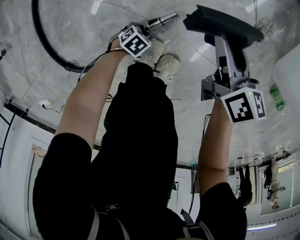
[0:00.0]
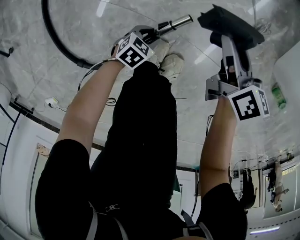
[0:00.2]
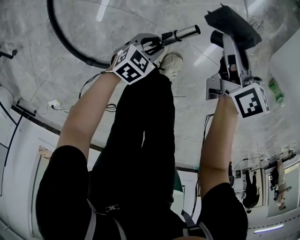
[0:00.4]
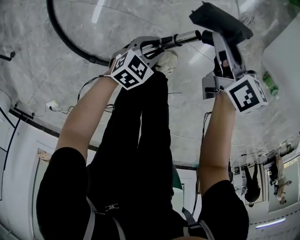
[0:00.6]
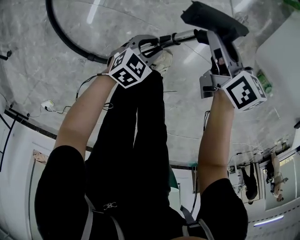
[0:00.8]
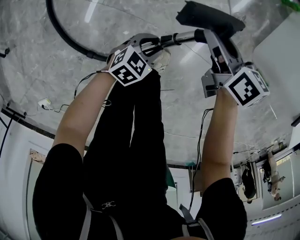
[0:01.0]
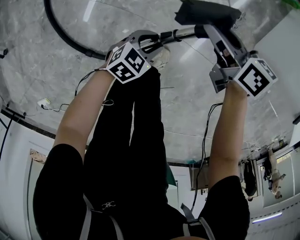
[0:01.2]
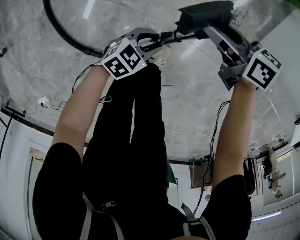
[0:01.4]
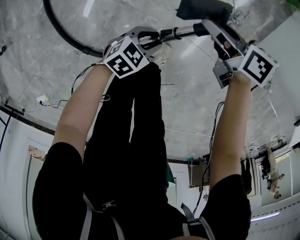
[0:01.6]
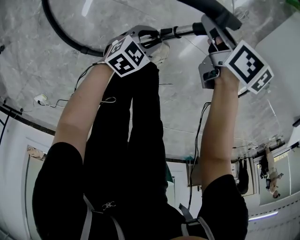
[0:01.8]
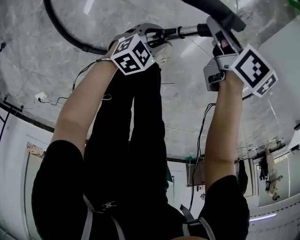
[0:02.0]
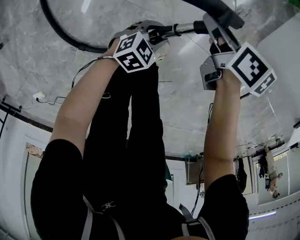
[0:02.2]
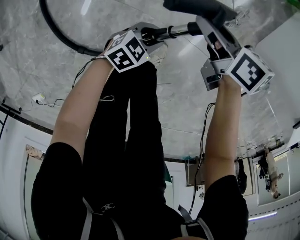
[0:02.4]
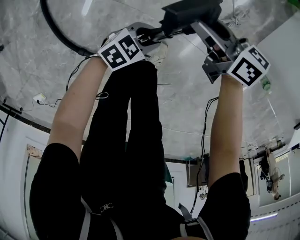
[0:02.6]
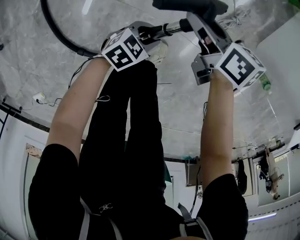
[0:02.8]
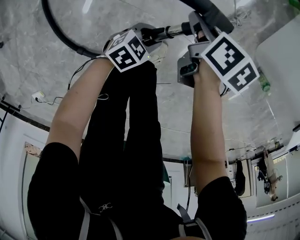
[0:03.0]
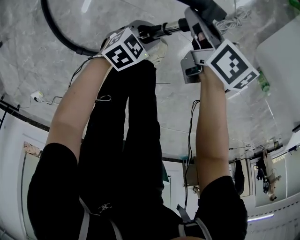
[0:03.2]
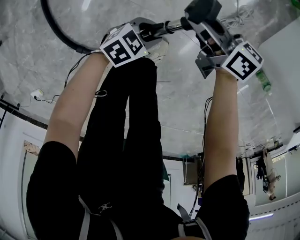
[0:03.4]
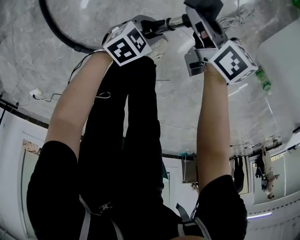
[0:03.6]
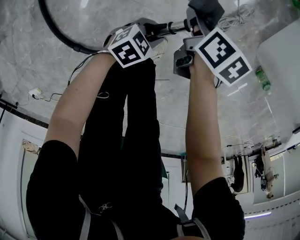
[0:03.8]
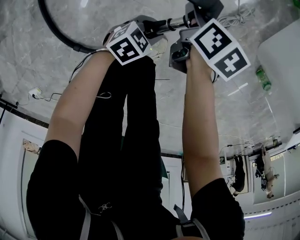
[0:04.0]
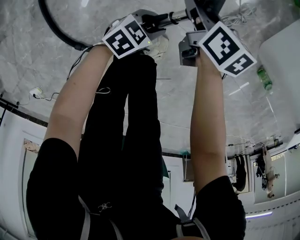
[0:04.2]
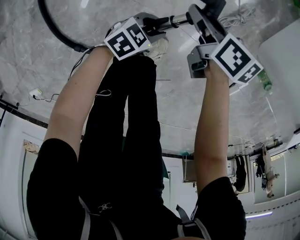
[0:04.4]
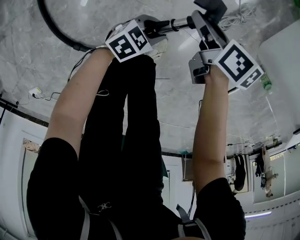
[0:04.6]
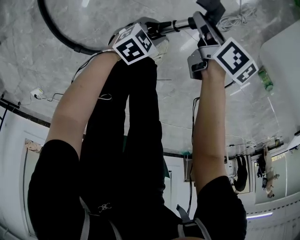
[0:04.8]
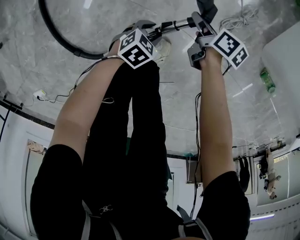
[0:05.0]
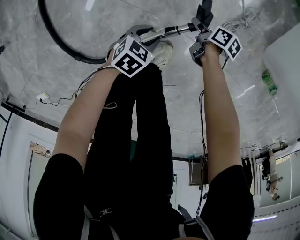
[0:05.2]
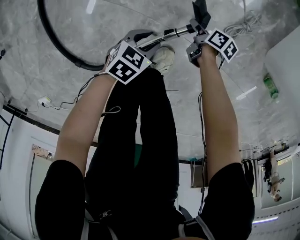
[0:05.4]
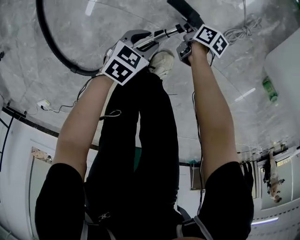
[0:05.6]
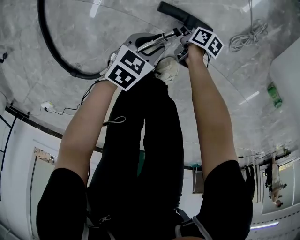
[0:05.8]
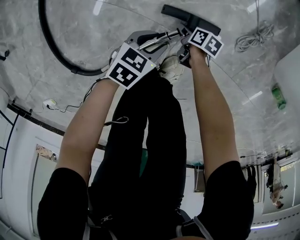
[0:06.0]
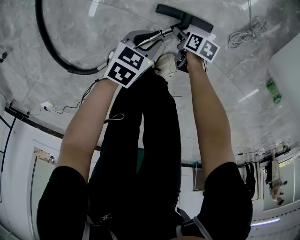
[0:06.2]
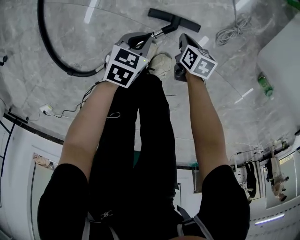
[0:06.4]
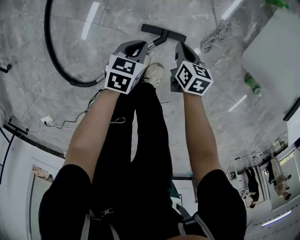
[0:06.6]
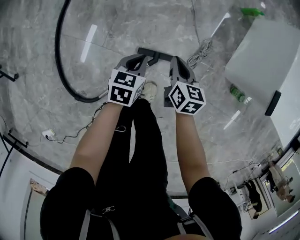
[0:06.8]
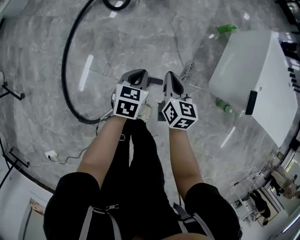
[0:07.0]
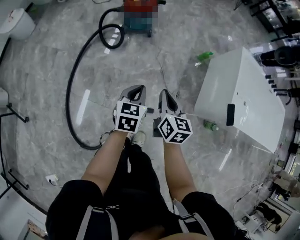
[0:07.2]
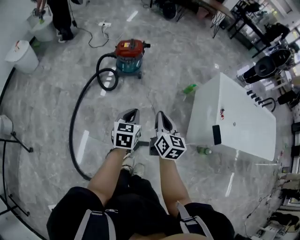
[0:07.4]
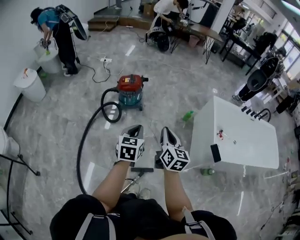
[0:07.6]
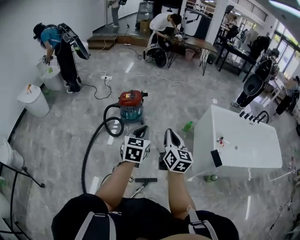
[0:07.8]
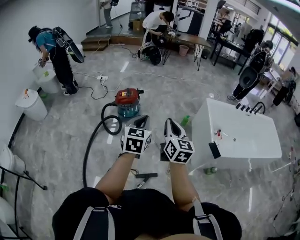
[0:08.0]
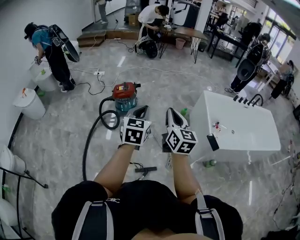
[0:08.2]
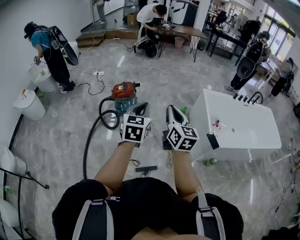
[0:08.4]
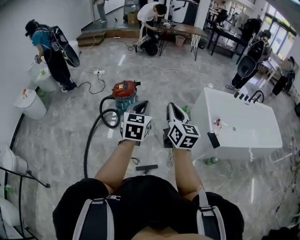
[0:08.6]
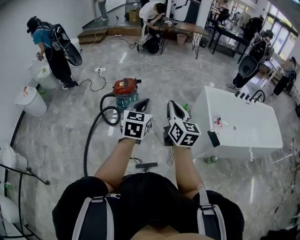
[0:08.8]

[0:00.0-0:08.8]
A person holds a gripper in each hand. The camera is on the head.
0:00.0 to 0:01.4: The left gripper heads upward, covering about 30 cm, and rotates about 30 degrees. The right gripper heads upward, covering approximately 10 cm, and turns by approximately 30 degrees.
0:01.4 to 0:03.0: The right gripper moves downward, roughly 5 cm, and changes its angle by some 40 degrees.
0:04.4 to 0:05.8: The right gripper moves downward, approximately 30 cm, and swivels about 30 degrees. Meanwhile the left gripper changes place by approximately 10 cm.
0:05.8 to 0:07.4: The grippers both shift upward by some 80 cm. The right gripper points its fingers about 40 degrees further upward, and closes up; the left gripper swivels roughly 40 degrees, and closes up.
0:07.4 to 0:08.8: Both grippers move upward and to the right, about 25 cm. The left gripper turns by about 20 degrees.

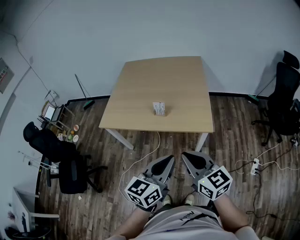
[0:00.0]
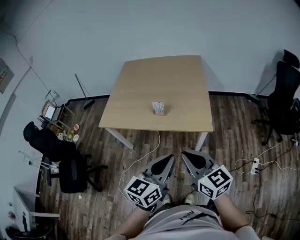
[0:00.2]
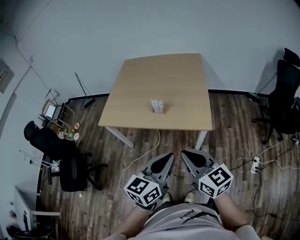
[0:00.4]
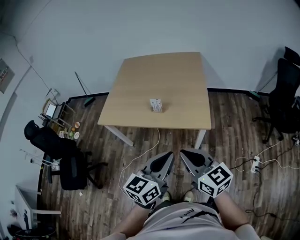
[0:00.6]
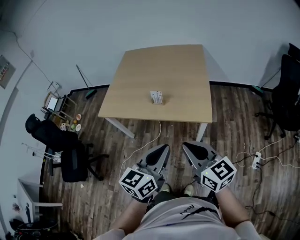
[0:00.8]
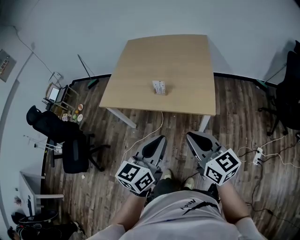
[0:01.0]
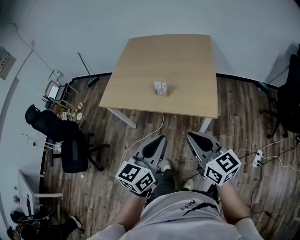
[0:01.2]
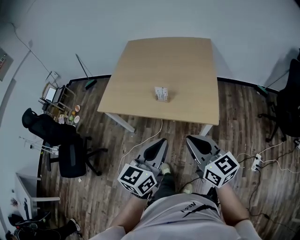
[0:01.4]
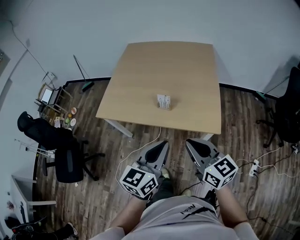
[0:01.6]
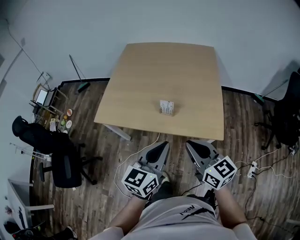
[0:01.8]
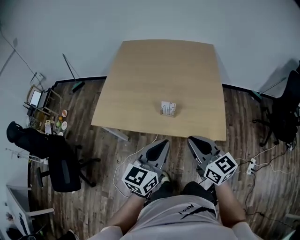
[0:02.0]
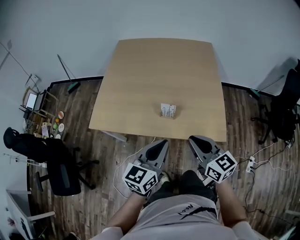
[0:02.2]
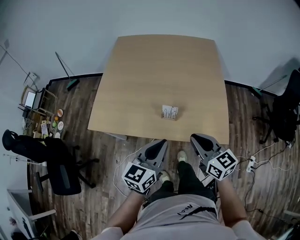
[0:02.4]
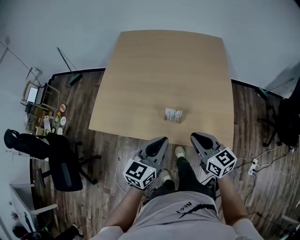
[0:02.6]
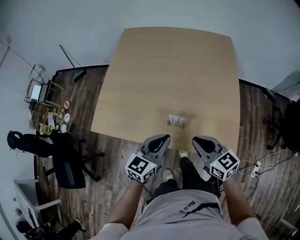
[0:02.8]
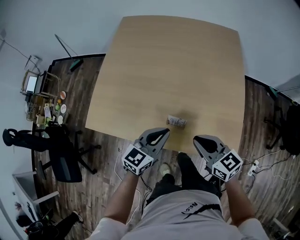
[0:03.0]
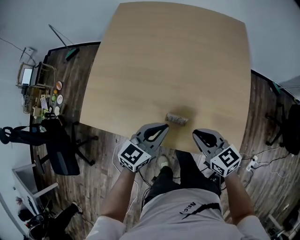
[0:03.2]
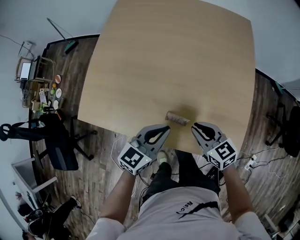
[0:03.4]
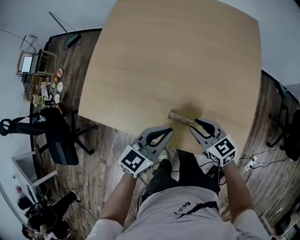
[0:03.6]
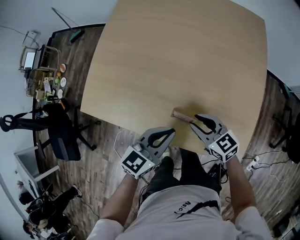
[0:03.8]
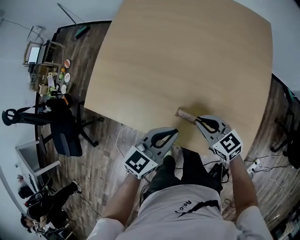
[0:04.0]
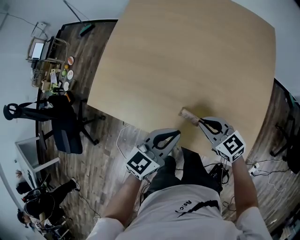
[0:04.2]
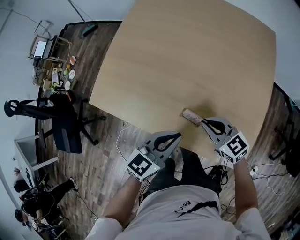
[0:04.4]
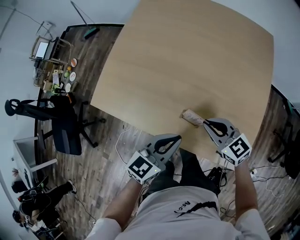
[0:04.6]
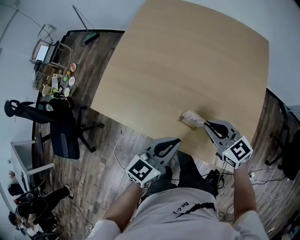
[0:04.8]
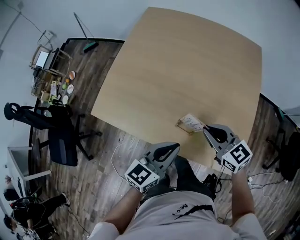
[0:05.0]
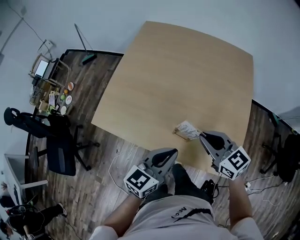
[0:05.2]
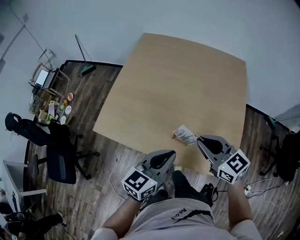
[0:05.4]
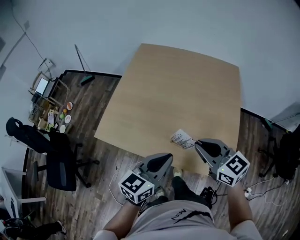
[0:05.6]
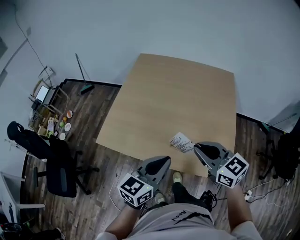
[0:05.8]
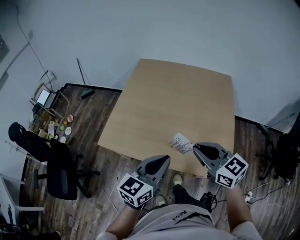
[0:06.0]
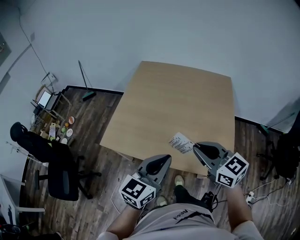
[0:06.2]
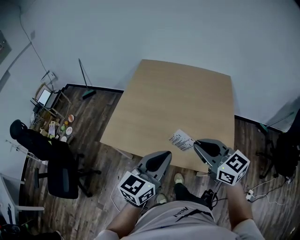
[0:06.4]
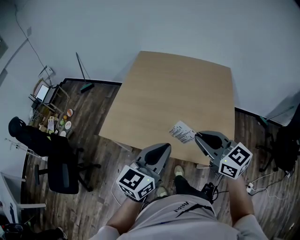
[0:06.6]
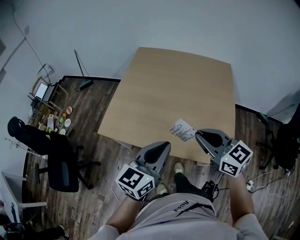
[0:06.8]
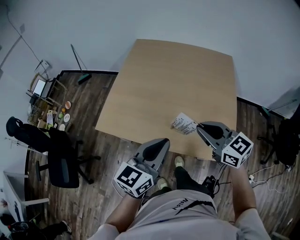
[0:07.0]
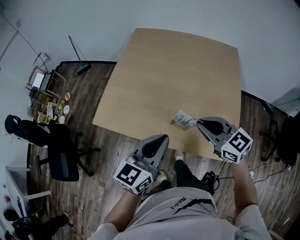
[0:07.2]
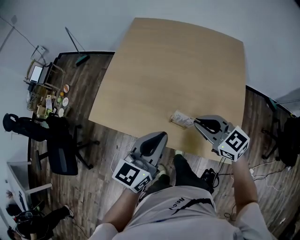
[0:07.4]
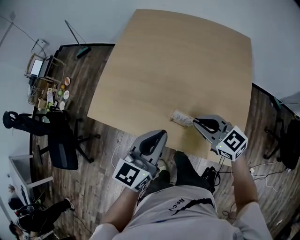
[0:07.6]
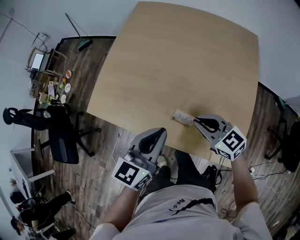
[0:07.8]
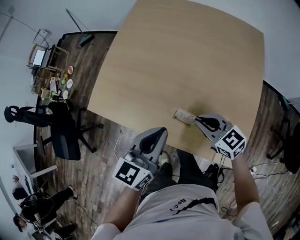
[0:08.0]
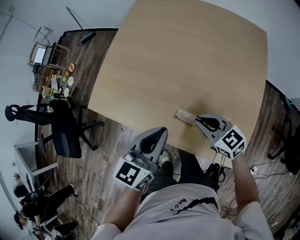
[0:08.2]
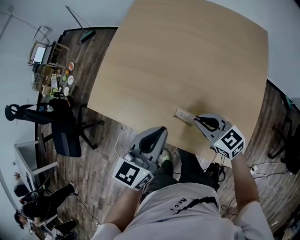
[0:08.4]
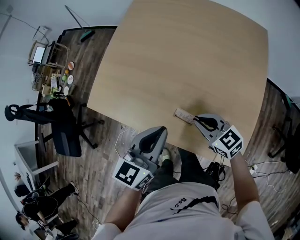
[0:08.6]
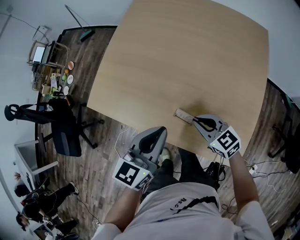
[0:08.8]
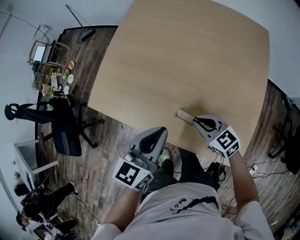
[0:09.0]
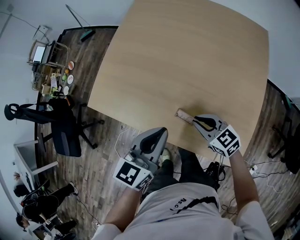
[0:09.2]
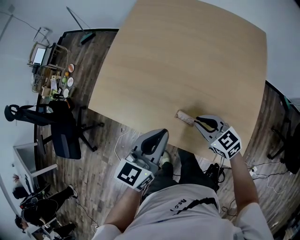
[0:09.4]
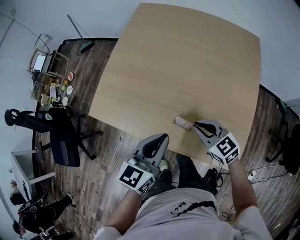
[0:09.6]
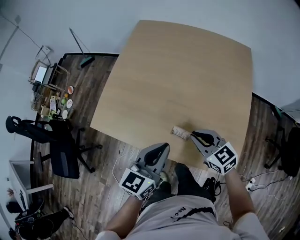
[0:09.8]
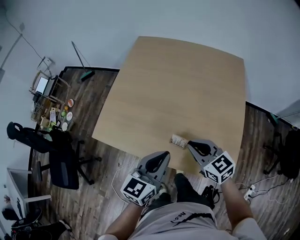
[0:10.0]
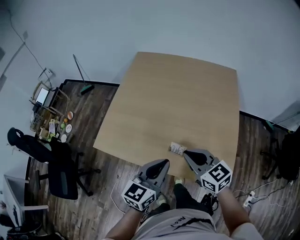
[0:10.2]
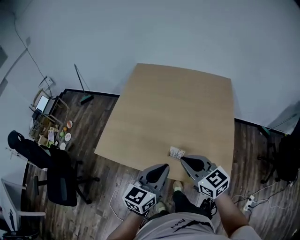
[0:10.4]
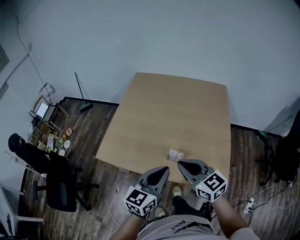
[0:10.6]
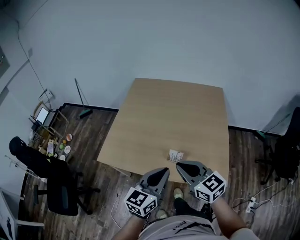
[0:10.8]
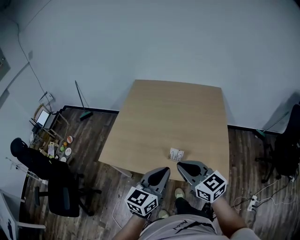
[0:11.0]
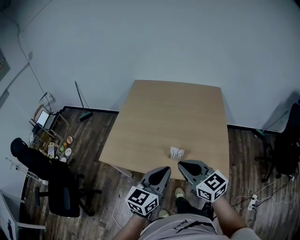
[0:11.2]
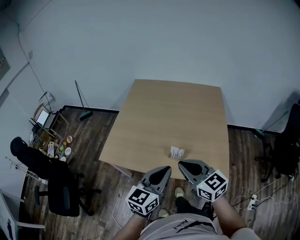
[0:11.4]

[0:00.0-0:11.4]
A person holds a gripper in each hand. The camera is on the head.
0:00.0 to 0:01.4: The grippers both shift forward by roughly 5 cm.
0:01.4 to 0:02.8: Both grippers travel together forward and downward, about 35 cm.
0:02.8 to 0:04.2: The left gripper heads downward and forward, covering some 10 cm, while the right gripper is displaced downward and forward by roughly 15 cm, turns by some 20 degrees, and opens and closes again.
0:04.2 to 0:05.6: The right gripper shifts approximately 25 cm upward, while the left gripper travels upward and backward by approximately 15 cm.
0:05.6 to 0:07.2: The right gripper moves about 5 cm upward and comes back. The left gripper travels upward and back again, roughly 10 cm each way.
0:07.2 to 0:08.6: The left gripper is displaced downward and forward by roughly 10 cm. The right gripper shifts some 20 cm downward.
0:08.6 to 0:10.0: The right gripper shifts roughly 10 cm upward, while the left gripper changes place by roughly 5 cm.
0:10.0 to 0:11.4: The right gripper goes roughly 20 cm upward, backward and to the left. The left gripper travels backward and upward by some 15 cm.

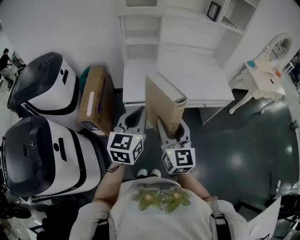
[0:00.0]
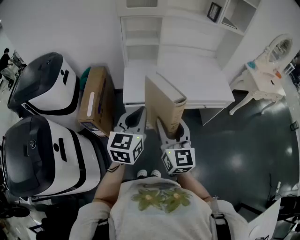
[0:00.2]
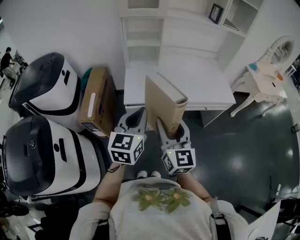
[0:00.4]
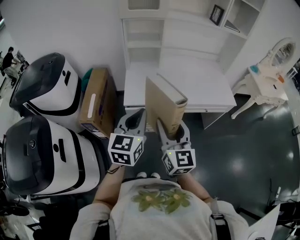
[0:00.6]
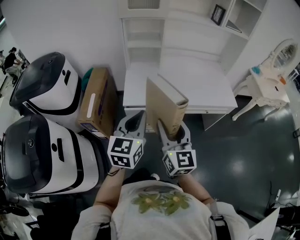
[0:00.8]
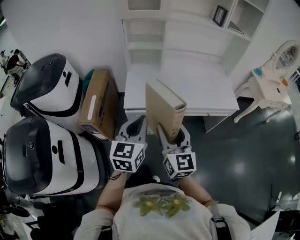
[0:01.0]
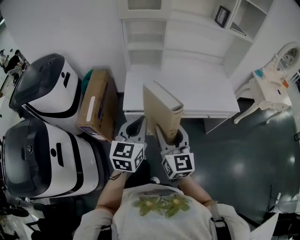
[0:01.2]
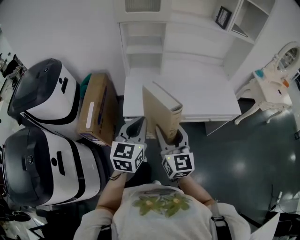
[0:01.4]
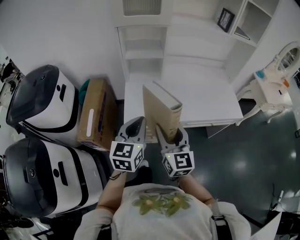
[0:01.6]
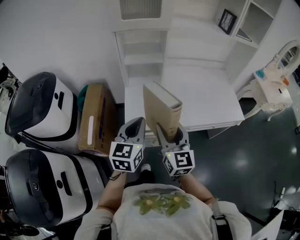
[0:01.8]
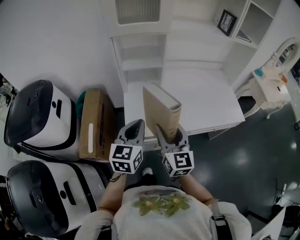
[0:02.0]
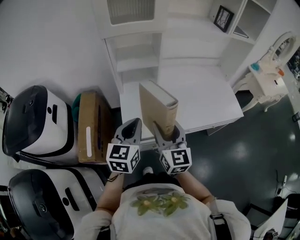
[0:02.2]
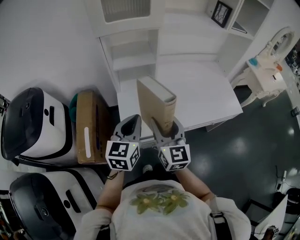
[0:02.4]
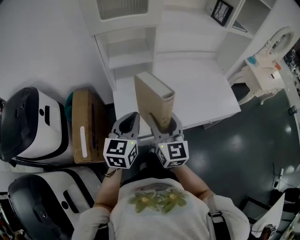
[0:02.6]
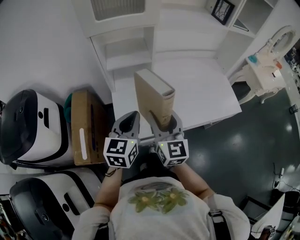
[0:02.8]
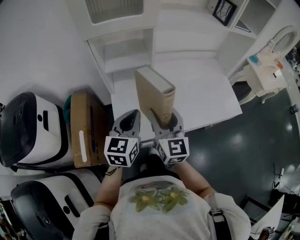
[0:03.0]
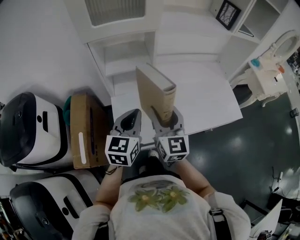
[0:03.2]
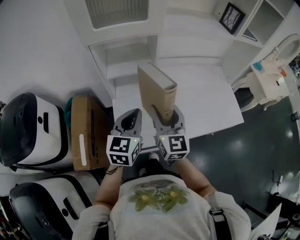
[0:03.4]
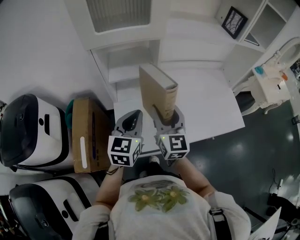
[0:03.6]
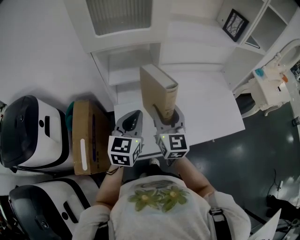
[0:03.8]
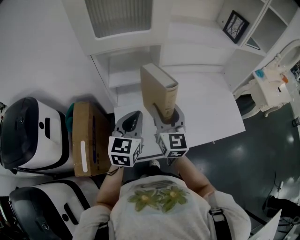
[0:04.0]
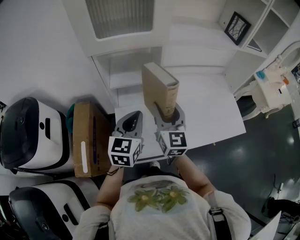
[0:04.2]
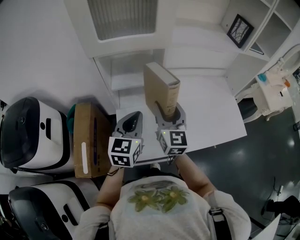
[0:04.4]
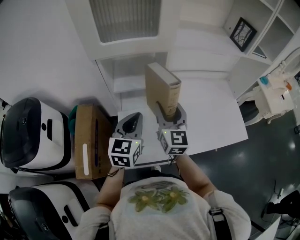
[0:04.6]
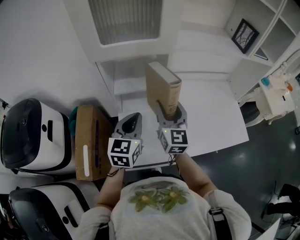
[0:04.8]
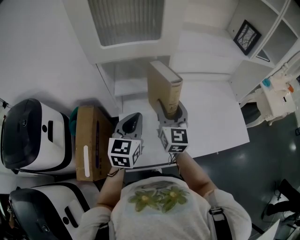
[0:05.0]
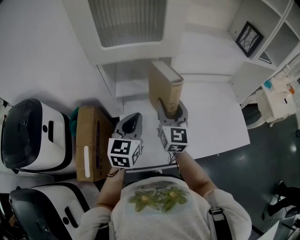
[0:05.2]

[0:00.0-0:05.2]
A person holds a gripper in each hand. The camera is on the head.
0:00.0 to 0:01.8: The grippers both shift forward by roughly 20 cm.
0:01.8 to 0:03.4: The two grippers go roughly 20 cm forward.
0:03.4 to 0:05.2: The left gripper shifts some 10 cm forward. Meanwhile the right gripper travels forward by about 15 cm.
